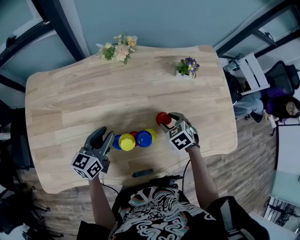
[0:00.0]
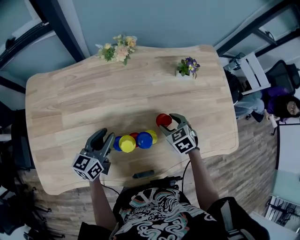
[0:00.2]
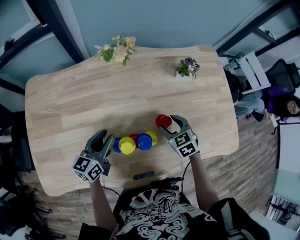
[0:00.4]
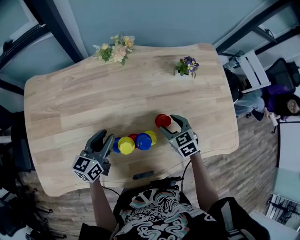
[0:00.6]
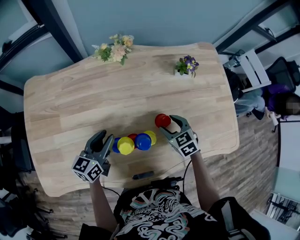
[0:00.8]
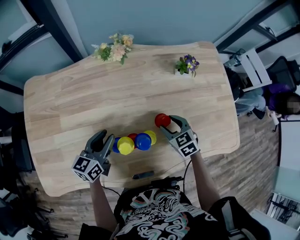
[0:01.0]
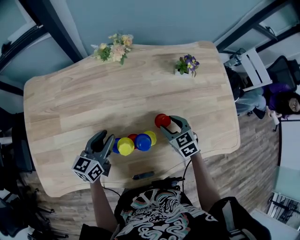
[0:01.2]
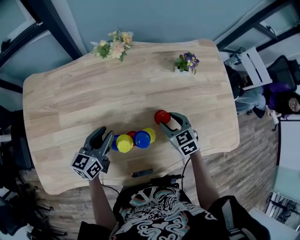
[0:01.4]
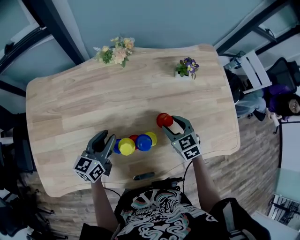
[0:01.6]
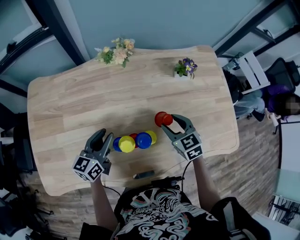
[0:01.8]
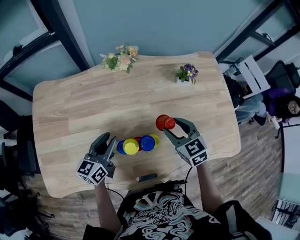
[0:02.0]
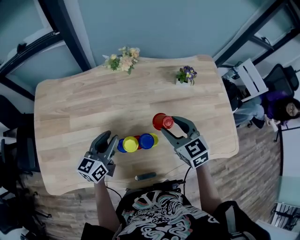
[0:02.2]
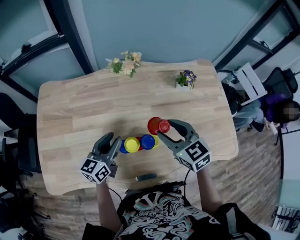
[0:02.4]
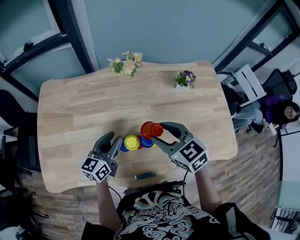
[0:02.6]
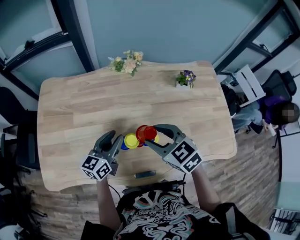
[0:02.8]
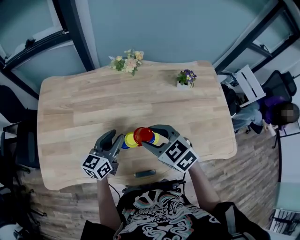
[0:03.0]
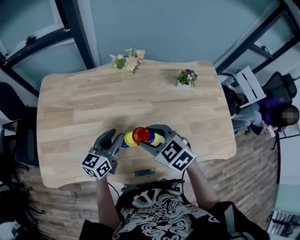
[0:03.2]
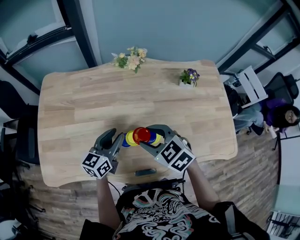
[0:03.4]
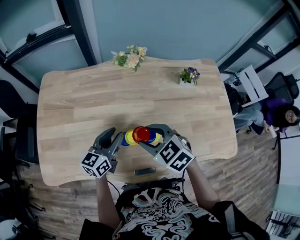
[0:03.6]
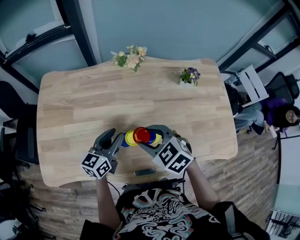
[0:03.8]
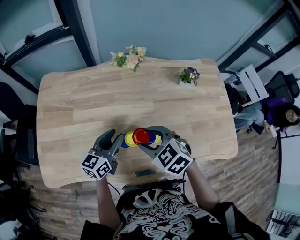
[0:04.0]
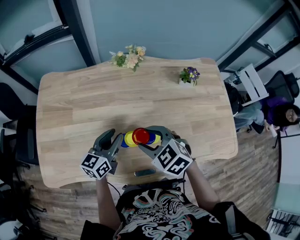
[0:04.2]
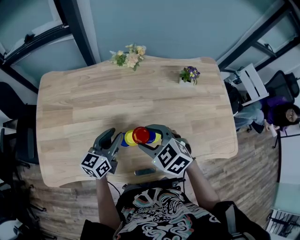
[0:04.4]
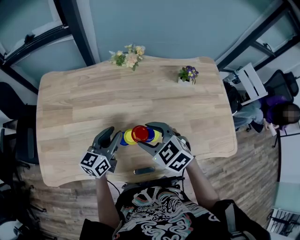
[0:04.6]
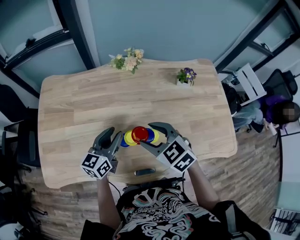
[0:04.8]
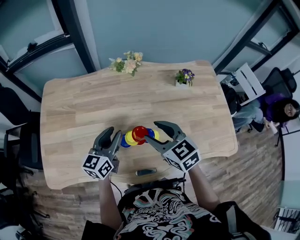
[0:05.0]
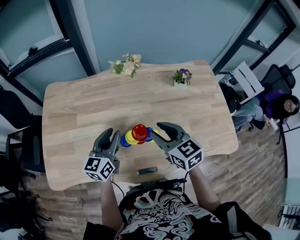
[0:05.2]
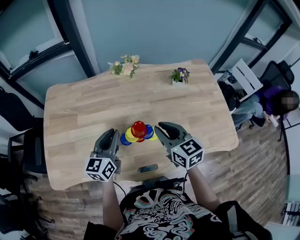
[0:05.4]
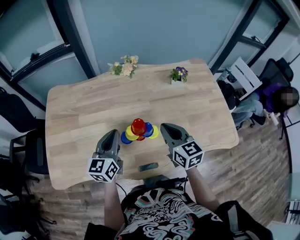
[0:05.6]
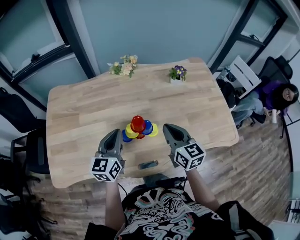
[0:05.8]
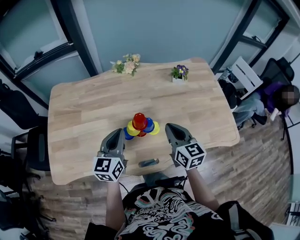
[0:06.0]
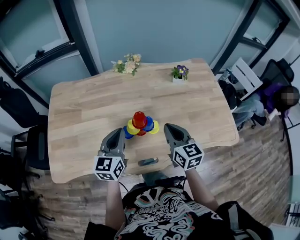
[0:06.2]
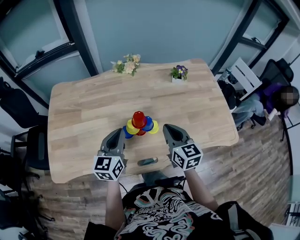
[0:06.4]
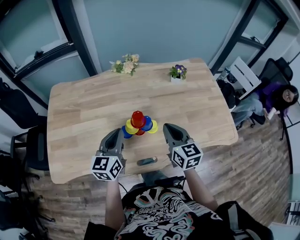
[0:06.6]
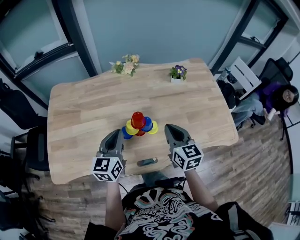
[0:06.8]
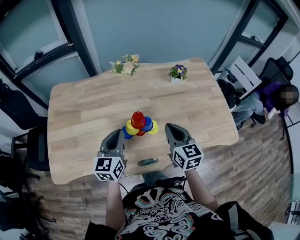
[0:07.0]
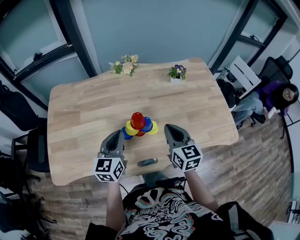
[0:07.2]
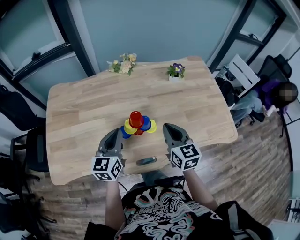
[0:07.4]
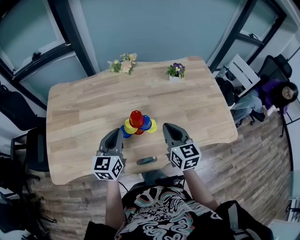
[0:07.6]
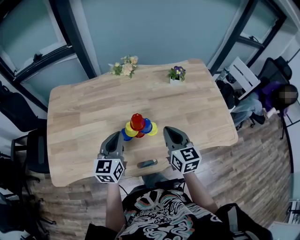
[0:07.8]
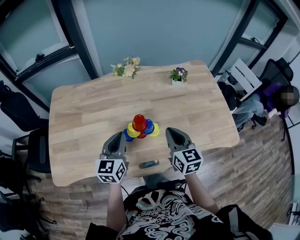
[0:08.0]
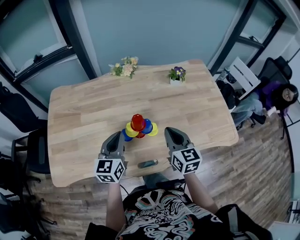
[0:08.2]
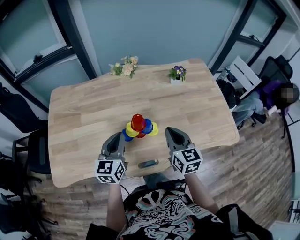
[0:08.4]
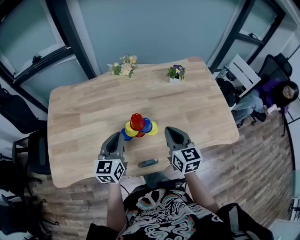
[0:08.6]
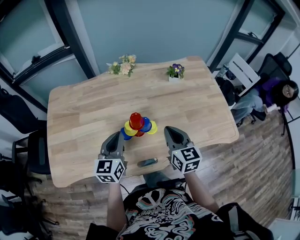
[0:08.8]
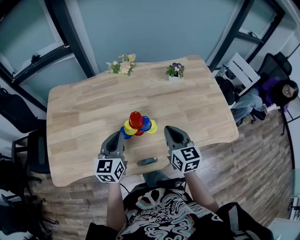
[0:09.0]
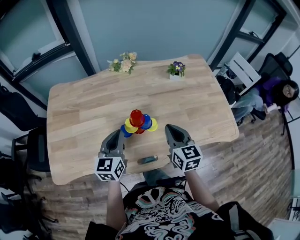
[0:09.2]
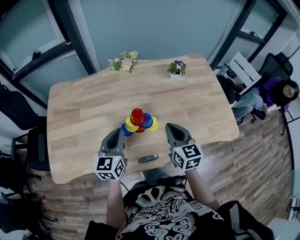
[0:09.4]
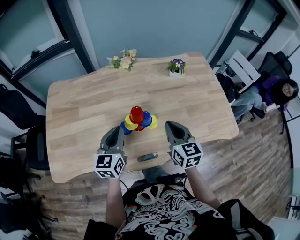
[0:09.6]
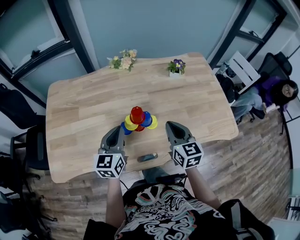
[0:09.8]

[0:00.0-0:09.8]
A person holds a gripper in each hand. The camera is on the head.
0:00.0 to 0:01.4: There are only small adjustments of the grippers.
0:01.4 to 0:02.8: The right gripper goes approximately 25 cm upward, to the left and backward, and turns by approximately 20 degrees. The left gripper moves upward, some 5 cm.
0:02.8 to 0:04.2: There are only small adjustments of the grippers.
0:04.2 to 0:05.6: The left gripper goes approximately 5 cm upward, and closes. Meanwhile the right gripper heads to the right, covering approximately 10 cm, changes its angle by some 50 degrees, and closes up.
0:05.6 to 0:07.0: The grippers make only small movements.
0:07.0 to 0:08.4: Both grippers stay put.
0:08.4 to 0:09.8: Both grippers stay put.

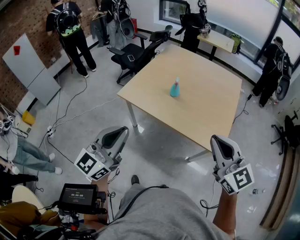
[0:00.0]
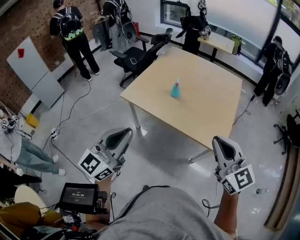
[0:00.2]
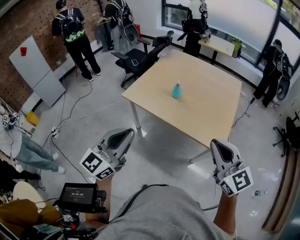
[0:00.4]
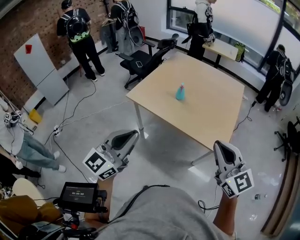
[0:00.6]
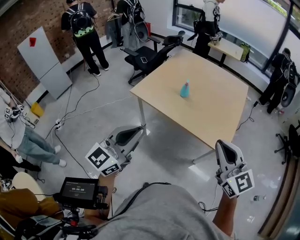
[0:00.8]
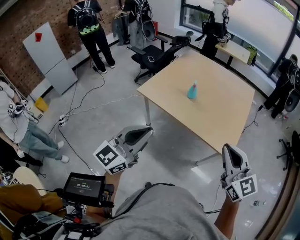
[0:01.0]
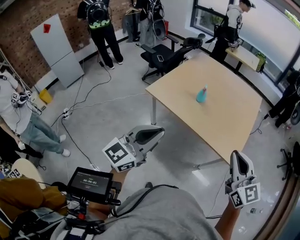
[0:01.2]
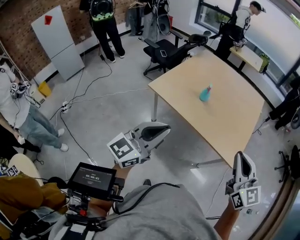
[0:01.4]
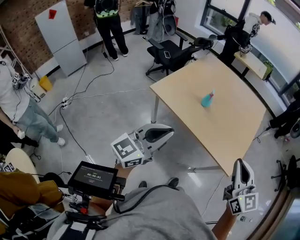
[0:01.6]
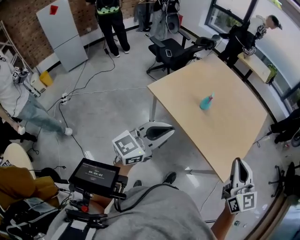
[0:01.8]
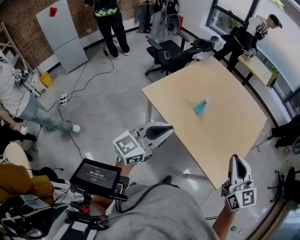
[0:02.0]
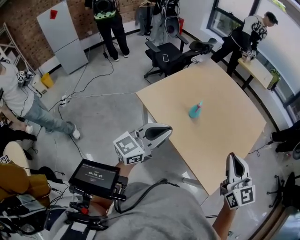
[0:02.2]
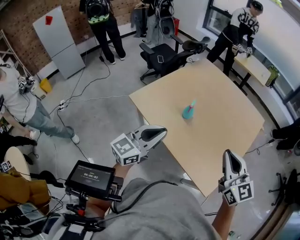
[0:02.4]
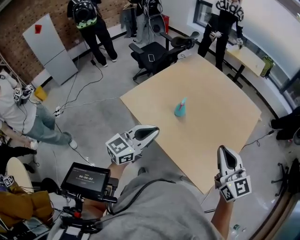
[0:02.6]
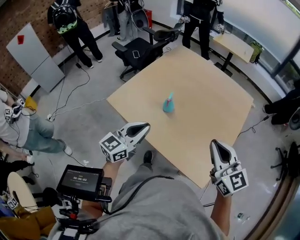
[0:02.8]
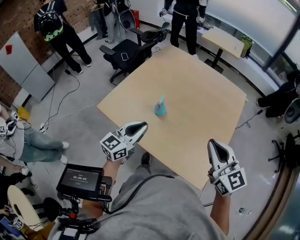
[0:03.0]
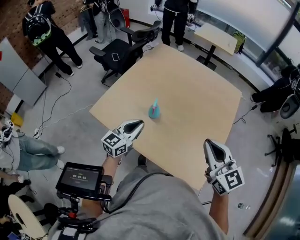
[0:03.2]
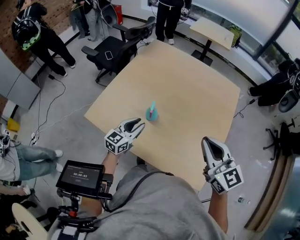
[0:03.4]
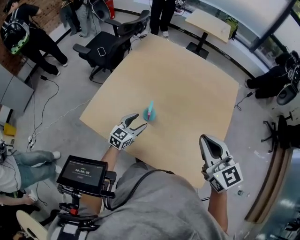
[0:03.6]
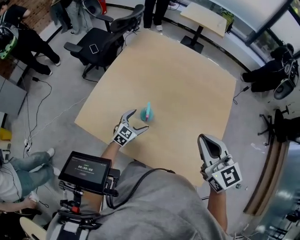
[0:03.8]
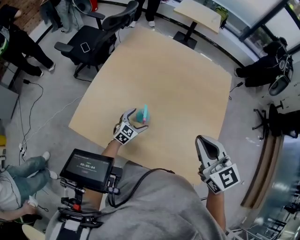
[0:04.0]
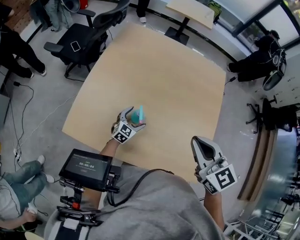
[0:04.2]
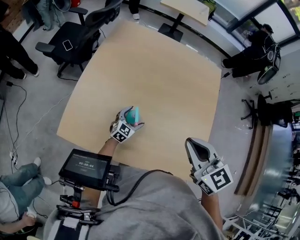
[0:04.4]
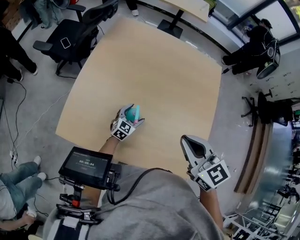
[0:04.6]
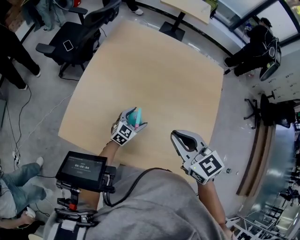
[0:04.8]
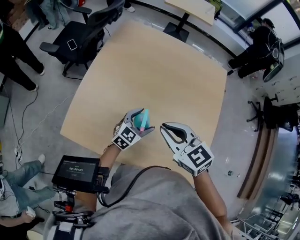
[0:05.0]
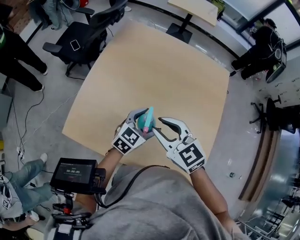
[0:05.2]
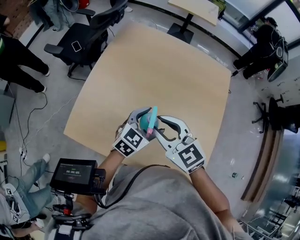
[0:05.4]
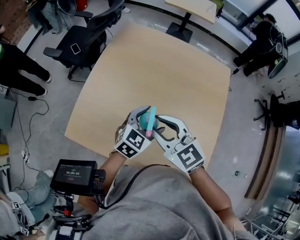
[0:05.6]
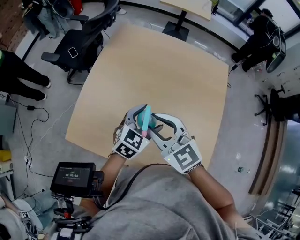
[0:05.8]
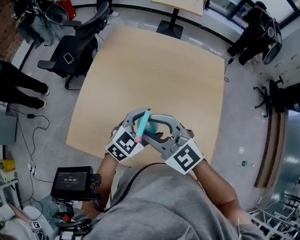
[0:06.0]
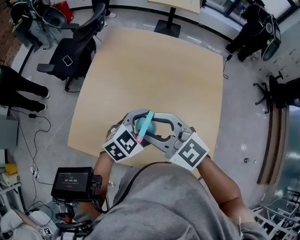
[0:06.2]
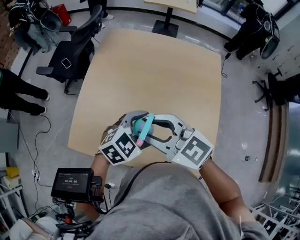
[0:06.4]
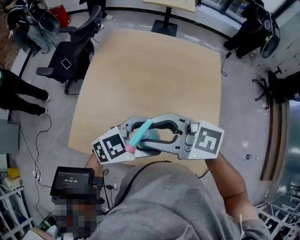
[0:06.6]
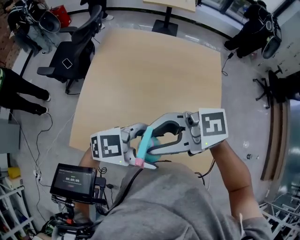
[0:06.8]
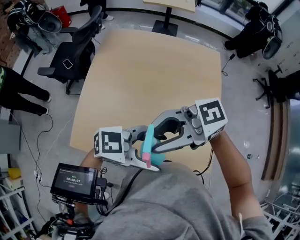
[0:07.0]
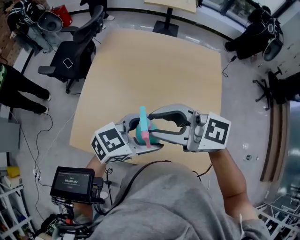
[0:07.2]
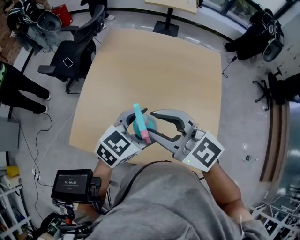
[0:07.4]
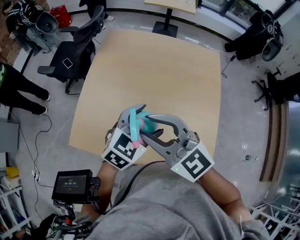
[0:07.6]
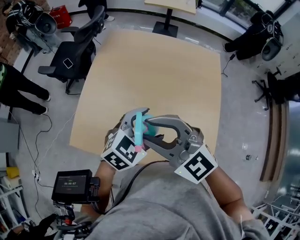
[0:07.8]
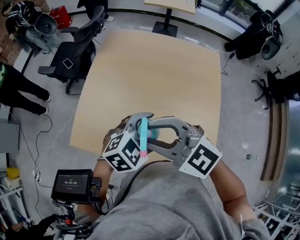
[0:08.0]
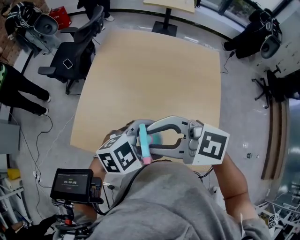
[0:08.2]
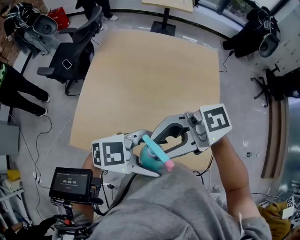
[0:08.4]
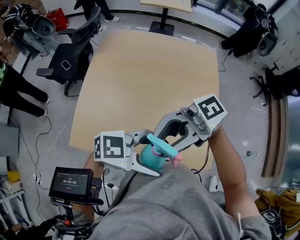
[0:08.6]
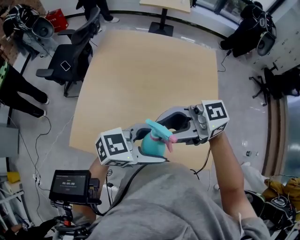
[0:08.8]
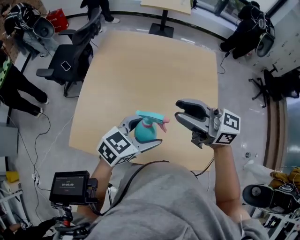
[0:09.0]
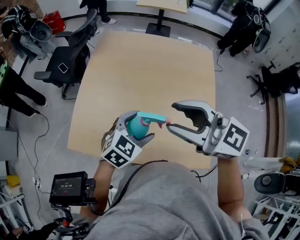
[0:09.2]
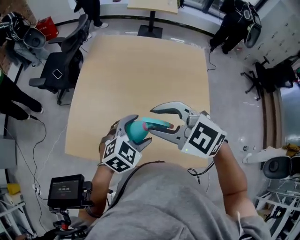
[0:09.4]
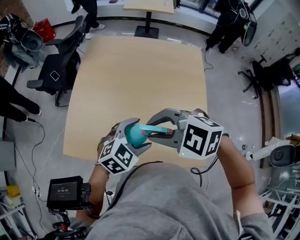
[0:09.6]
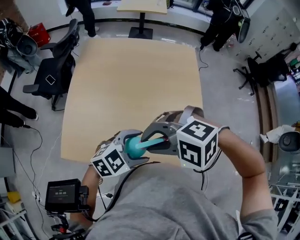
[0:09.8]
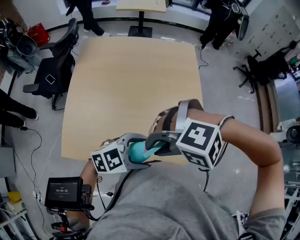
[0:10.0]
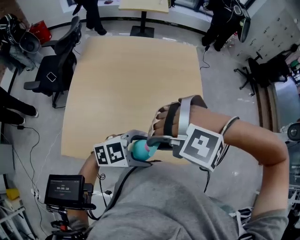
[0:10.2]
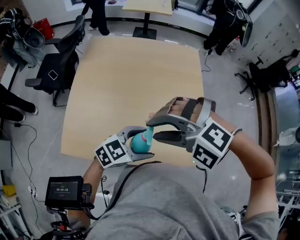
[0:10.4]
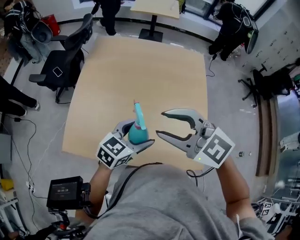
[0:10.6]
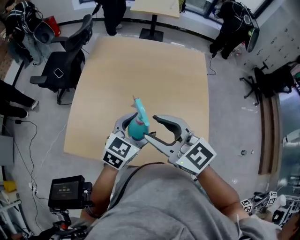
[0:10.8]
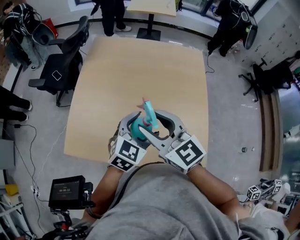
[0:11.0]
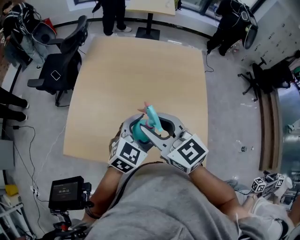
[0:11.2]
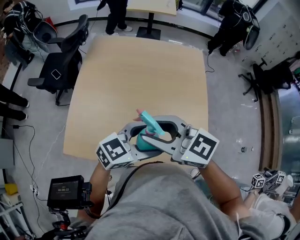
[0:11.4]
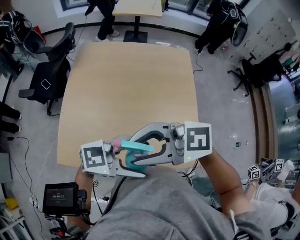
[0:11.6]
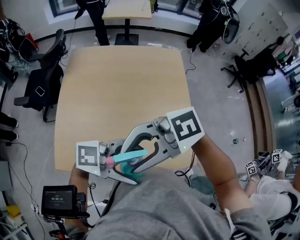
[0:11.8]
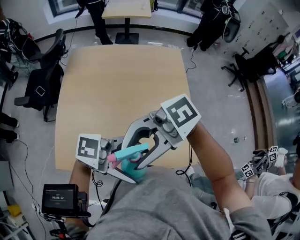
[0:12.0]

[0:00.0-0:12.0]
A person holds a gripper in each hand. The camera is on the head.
0:00.0 to 0:01.6: The left gripper heads downward, covering roughly 5 cm, and moves some 5 cm backward and comes back.
0:01.6 to 0:03.0: The grippers both shift forward and to the right by roughly 35 cm.
0:03.0 to 0:04.4: The left gripper is displaced downward and forward by about 35 cm, swivels some 30 degrees, and opens, while the right gripper heads forward and to the left, covering some 15 cm, and swivels about 20 degrees.
0:04.4 to 0:06.0: The left gripper moves upward, roughly 25 cm; the right gripper heads to the left and forward, covering approximately 15 cm, swivels roughly 30 degrees, and opens its fingers.
0:06.0 to 0:07.6: Both grippers move upward, approximately 5 cm.
0:07.6 to 0:09.0: The right gripper changes place by approximately 10 cm, and swivels roughly 40 degrees.
0:09.0 to 0:10.4: The right gripper angles its fingers downward, by approximately 50 degrees.
0:10.4 to 0:12.0: The left gripper shifts about 10 cm upward, and turns by some 40 degrees; the right gripper shifts approximately 5 cm upward, and angles its fingers upward, by some 50 degrees.

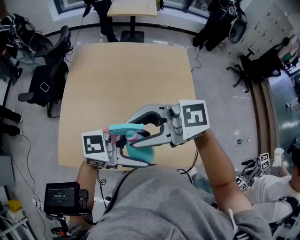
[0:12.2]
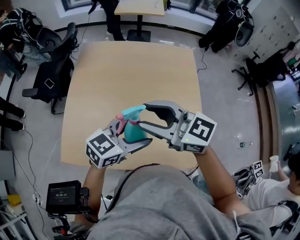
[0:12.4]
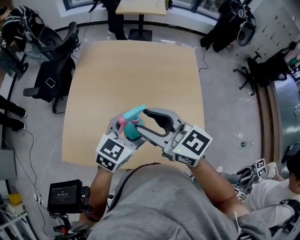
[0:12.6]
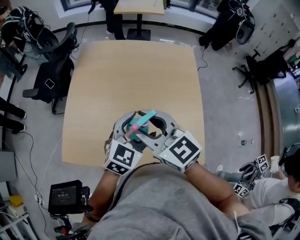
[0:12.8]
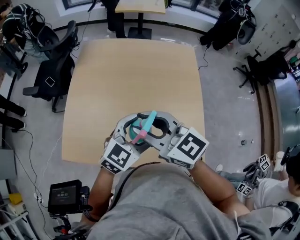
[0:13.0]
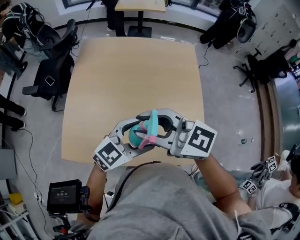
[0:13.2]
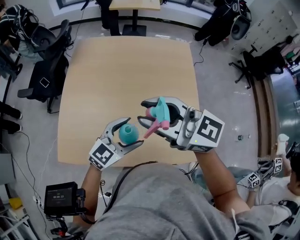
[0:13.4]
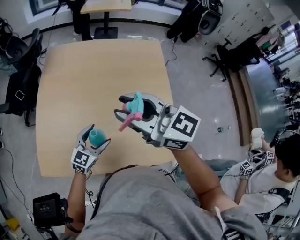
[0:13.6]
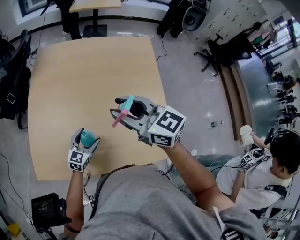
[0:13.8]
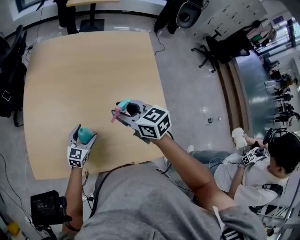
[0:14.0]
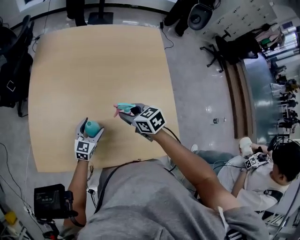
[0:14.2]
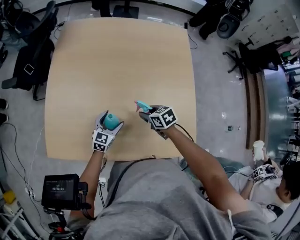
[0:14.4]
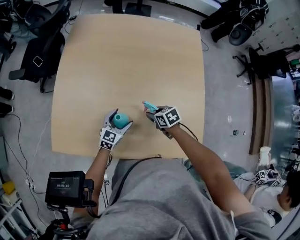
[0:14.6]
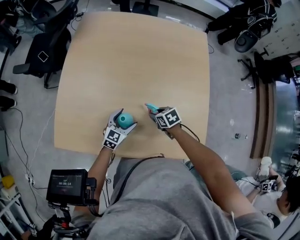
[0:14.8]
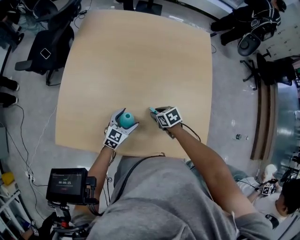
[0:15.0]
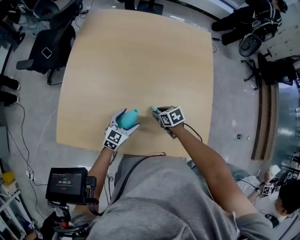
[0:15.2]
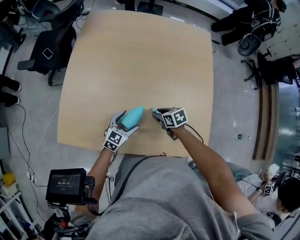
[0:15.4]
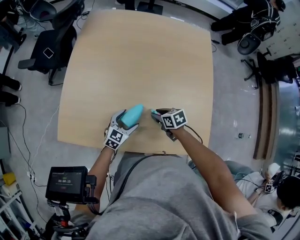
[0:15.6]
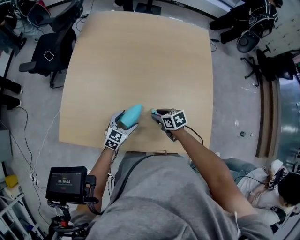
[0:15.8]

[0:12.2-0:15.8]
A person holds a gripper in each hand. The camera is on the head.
0:12.2 to 0:14.0: The left gripper moves downward, approximately 30 cm, and swivels approximately 60 degrees. Meanwhile the right gripper swings up and down, roughly 20 cm each way, with 2 reversals, and changes its angle by roughly 60 degrees.
0:14.0 to 0:15.8: The left gripper goes about 5 cm backward, while the right gripper moves downward, approximately 25 cm, and rotates roughly 30 degrees.
